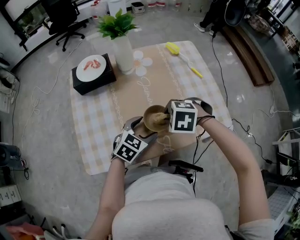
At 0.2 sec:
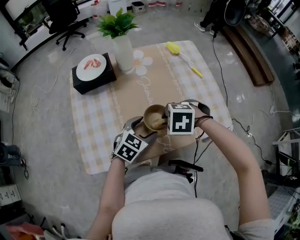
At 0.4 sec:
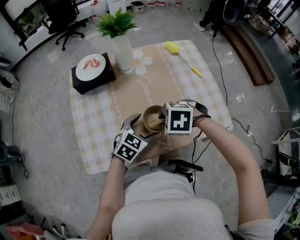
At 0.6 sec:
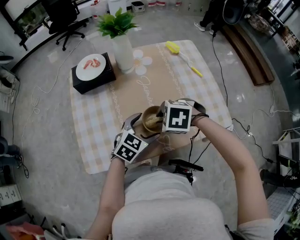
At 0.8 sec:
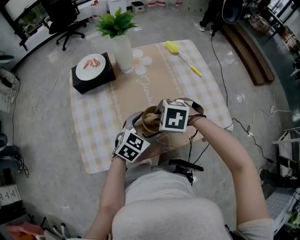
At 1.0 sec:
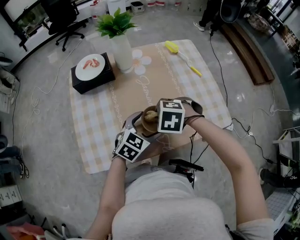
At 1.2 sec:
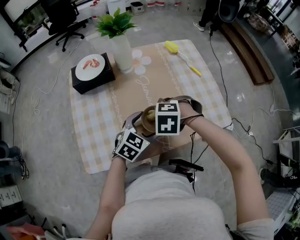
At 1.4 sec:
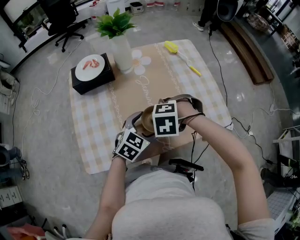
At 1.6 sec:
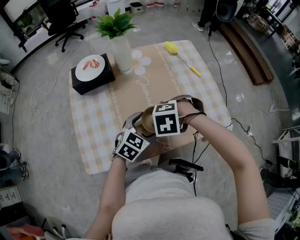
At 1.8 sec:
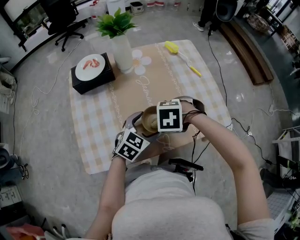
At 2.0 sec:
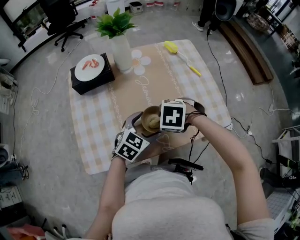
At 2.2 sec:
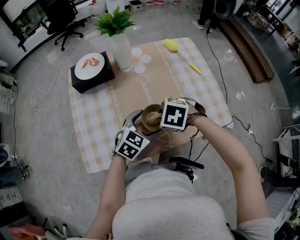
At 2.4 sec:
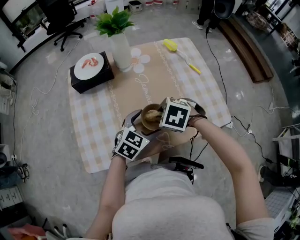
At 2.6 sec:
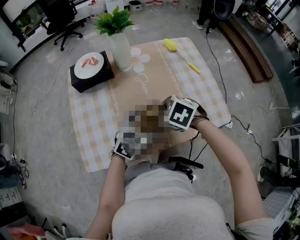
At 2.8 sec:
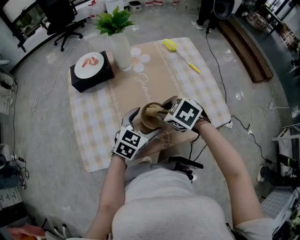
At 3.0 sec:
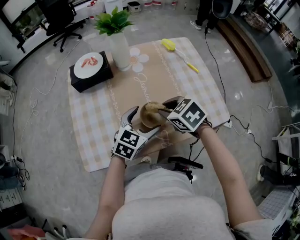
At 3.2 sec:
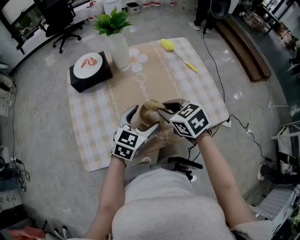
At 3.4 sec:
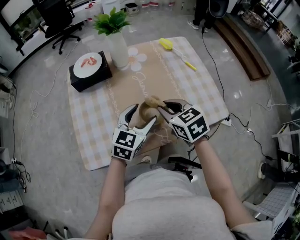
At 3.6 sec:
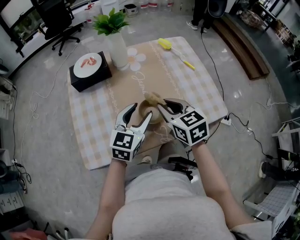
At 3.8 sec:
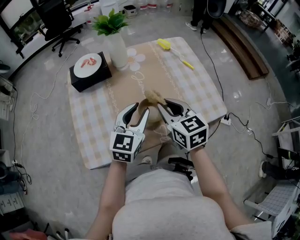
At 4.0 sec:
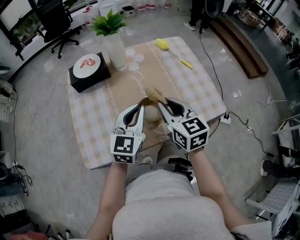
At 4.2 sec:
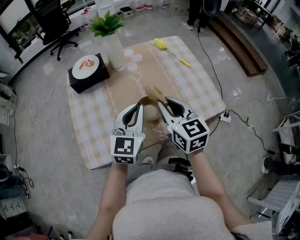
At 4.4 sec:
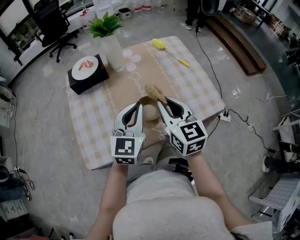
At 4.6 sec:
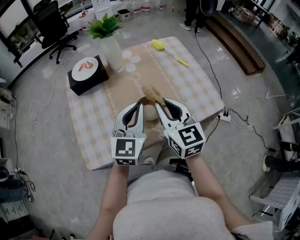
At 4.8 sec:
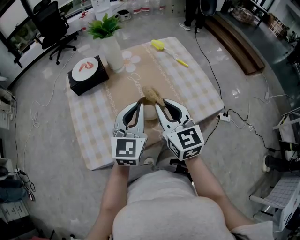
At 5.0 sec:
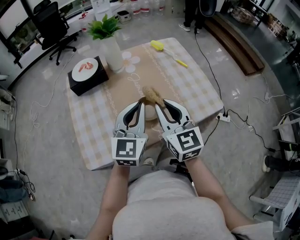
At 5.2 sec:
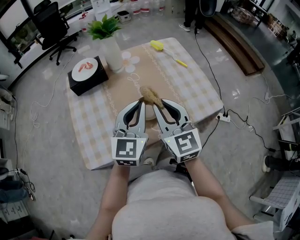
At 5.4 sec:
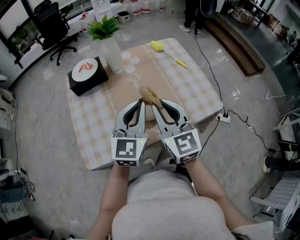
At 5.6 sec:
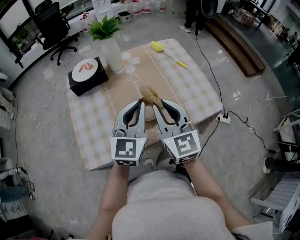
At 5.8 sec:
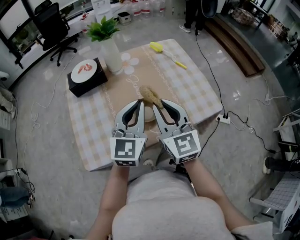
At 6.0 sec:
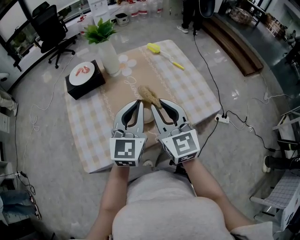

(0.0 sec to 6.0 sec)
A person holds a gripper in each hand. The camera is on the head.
0.0 sec - 1.6 sec: There are only small adjustments of the grippers.
1.6 sec - 3.0 sec: The right gripper tilts its fingers about 30 degrees upward.
3.0 sec - 4.4 sec: Both grippers move upward, roughly 10 cm. The left gripper turns by approximately 30 degrees, and closes its fingers. Meanwhile the right gripper tilts its fingers some 40 degrees upward.
4.4 sec - 6.0 sec: The grippers stay close to where they were, moving slightly.

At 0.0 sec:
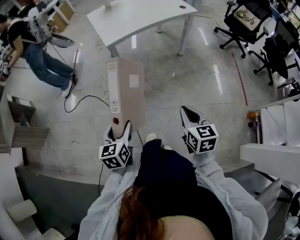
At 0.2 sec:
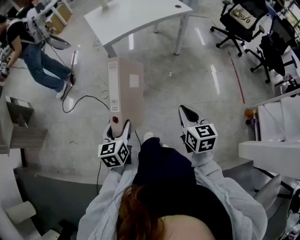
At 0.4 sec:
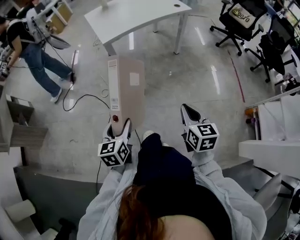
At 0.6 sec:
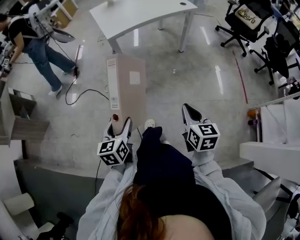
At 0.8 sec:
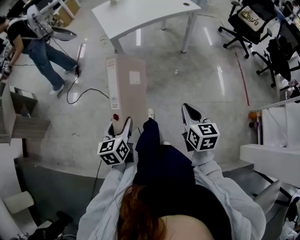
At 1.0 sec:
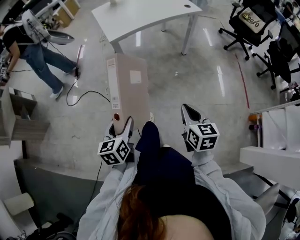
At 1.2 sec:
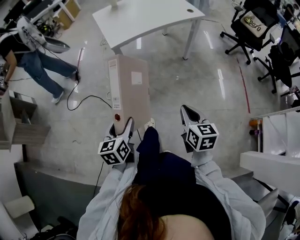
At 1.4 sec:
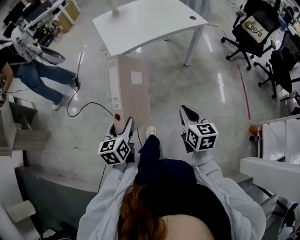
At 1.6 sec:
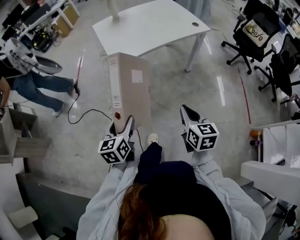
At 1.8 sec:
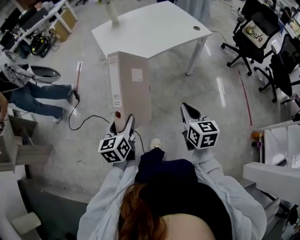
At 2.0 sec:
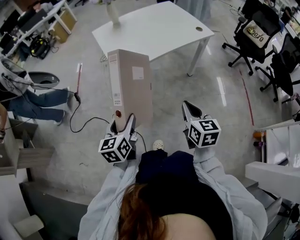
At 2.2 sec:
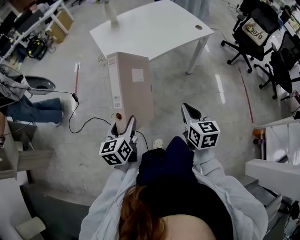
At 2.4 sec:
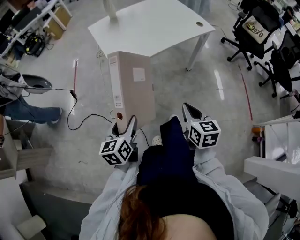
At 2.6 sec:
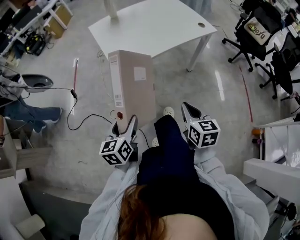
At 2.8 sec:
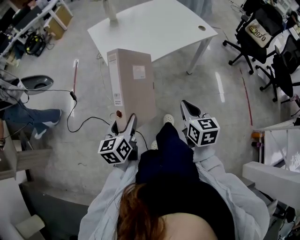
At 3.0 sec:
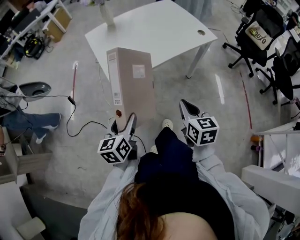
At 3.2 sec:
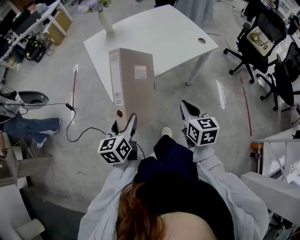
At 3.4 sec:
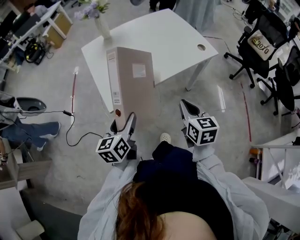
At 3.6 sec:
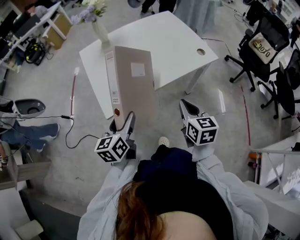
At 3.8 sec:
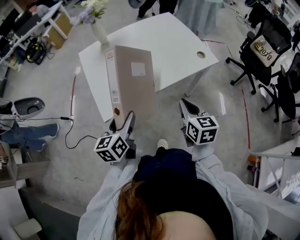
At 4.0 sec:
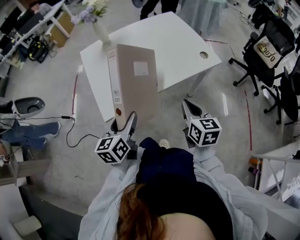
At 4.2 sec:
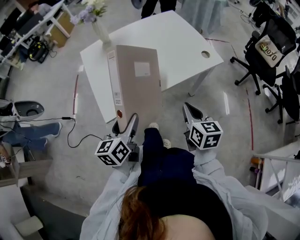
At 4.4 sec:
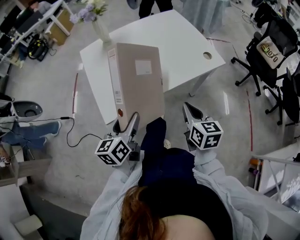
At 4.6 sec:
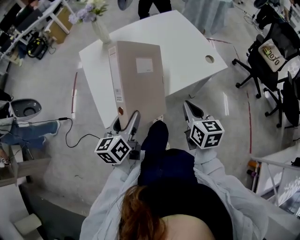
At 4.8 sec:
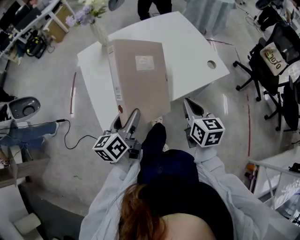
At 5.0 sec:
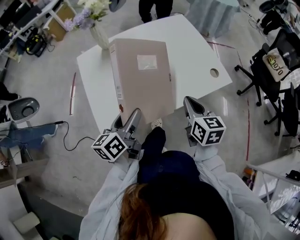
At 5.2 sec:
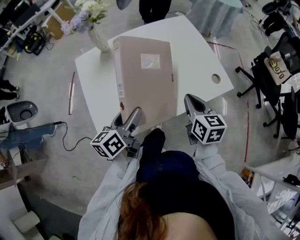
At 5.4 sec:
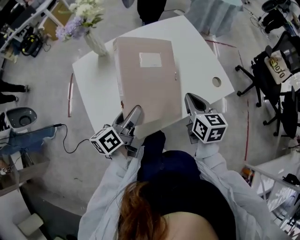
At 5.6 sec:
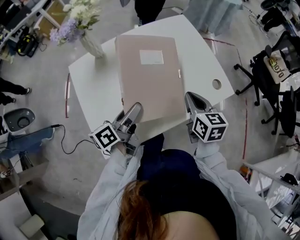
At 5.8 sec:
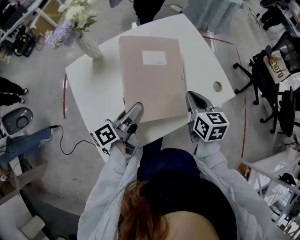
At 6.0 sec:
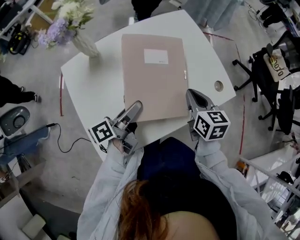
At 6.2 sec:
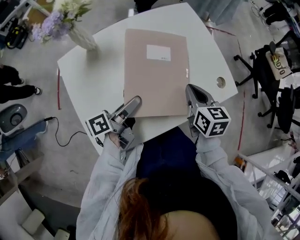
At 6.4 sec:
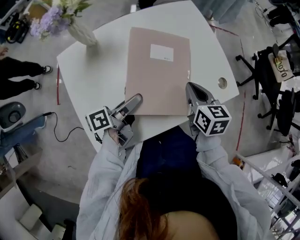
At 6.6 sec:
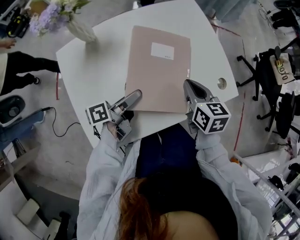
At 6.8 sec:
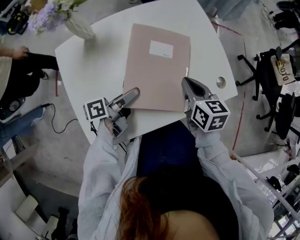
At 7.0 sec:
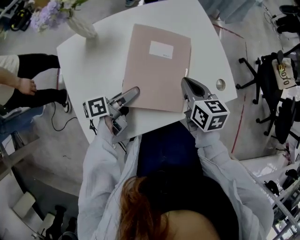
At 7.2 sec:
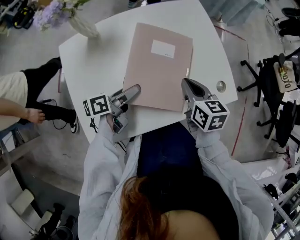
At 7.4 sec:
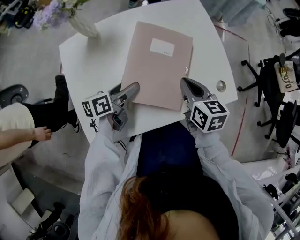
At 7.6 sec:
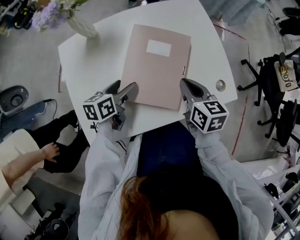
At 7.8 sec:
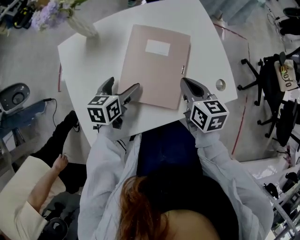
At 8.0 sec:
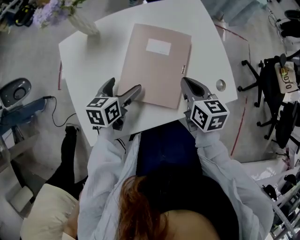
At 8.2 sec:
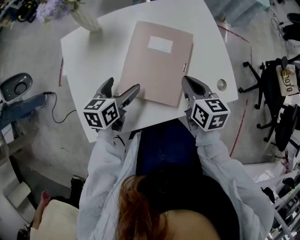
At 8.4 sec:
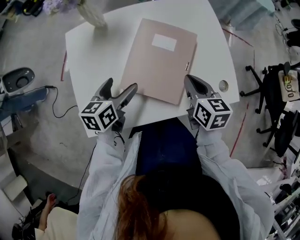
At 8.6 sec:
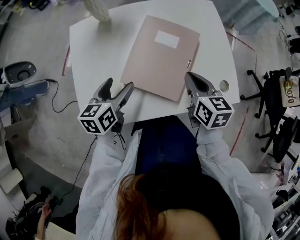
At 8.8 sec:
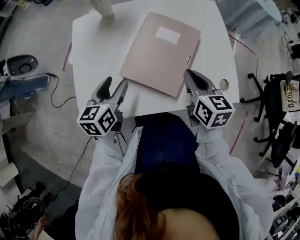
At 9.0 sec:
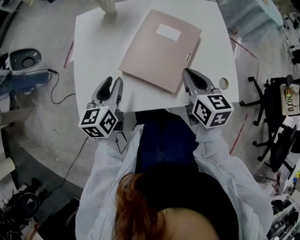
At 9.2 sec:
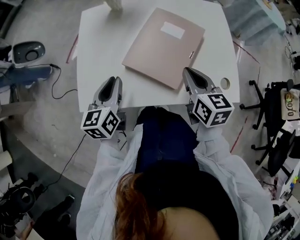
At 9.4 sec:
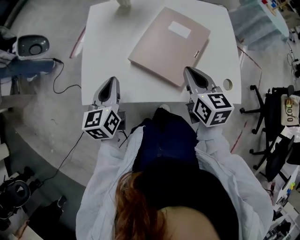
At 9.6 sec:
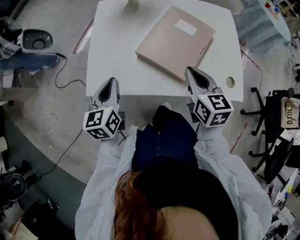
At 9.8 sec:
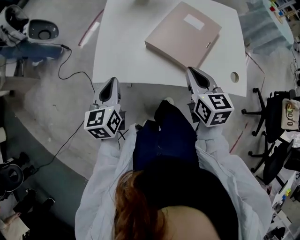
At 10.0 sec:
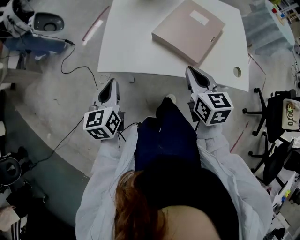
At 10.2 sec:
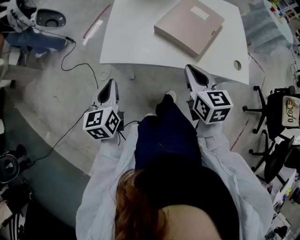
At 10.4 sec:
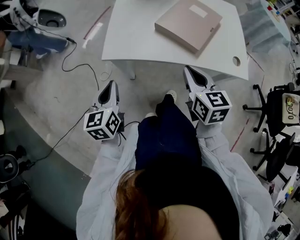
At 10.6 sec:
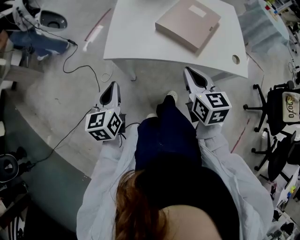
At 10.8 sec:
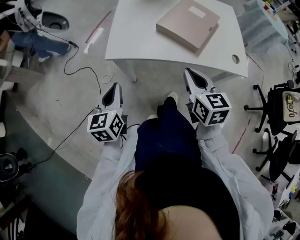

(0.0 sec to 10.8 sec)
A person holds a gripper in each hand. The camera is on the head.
0.0 sec - 1.6 sec: The grippers both shift forward by roughly 20 cm.
1.6 sec - 3.0 sec: Both grippers travel together forward, some 20 cm.
3.0 sec - 4.6 sec: The left gripper shifts about 25 cm forward and to the right; the right gripper moves forward, about 25 cm.
4.6 sec - 6.2 sec: The grippers both shift forward by approximately 25 cm. The left gripper rotates around the line of its fingers by approximately 40 degrees, counterclockwise from behind.
6.2 sec - 7.8 sec: The left gripper shifts by approximately 5 cm, rolls clockwise, seen from behind, by approximately 40 degrees, and opens up.
7.8 sec - 9.2 sec: The right gripper shifts approximately 5 cm backward. Meanwhile the left gripper moves backward and upward, about 15 cm, turns by about 40 degrees, and closes its fingers.
9.2 sec - 10.8 sec: Both grippers travel together backward and to the left, some 30 cm.

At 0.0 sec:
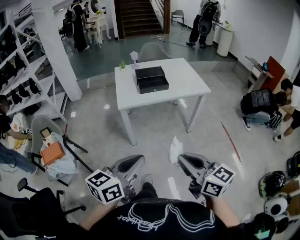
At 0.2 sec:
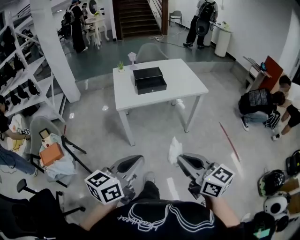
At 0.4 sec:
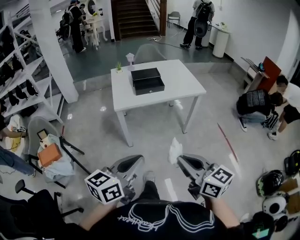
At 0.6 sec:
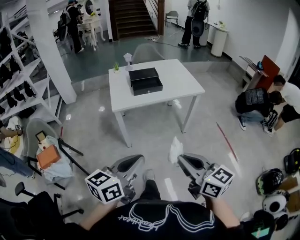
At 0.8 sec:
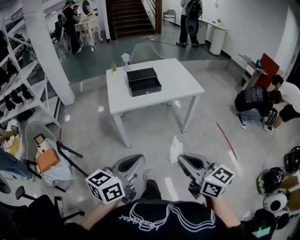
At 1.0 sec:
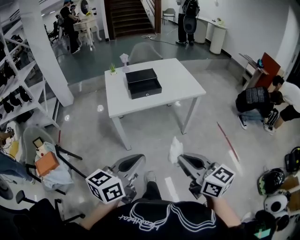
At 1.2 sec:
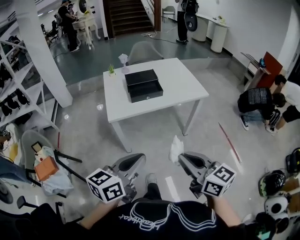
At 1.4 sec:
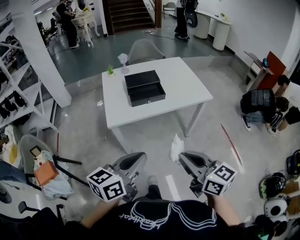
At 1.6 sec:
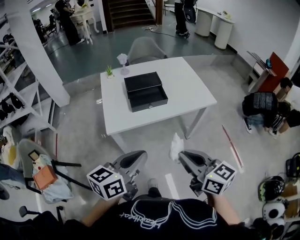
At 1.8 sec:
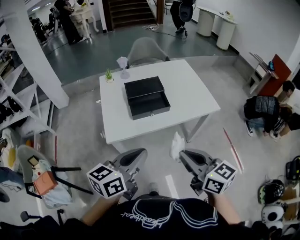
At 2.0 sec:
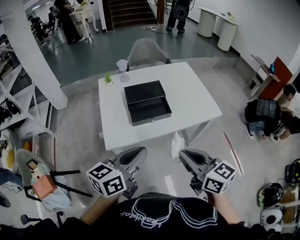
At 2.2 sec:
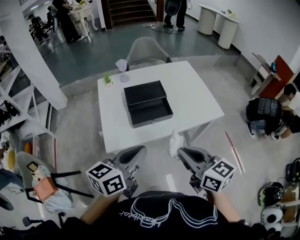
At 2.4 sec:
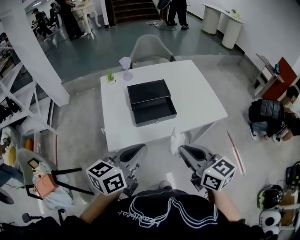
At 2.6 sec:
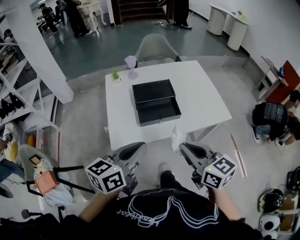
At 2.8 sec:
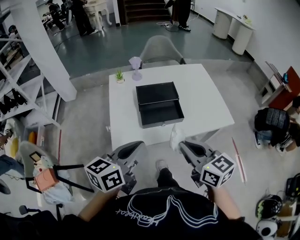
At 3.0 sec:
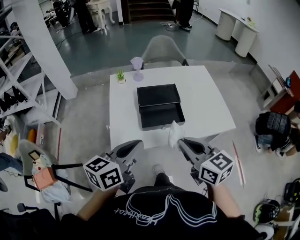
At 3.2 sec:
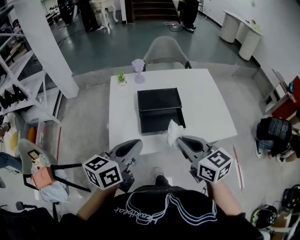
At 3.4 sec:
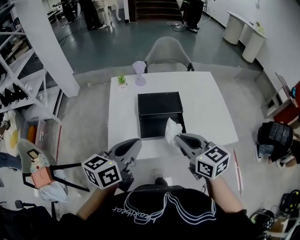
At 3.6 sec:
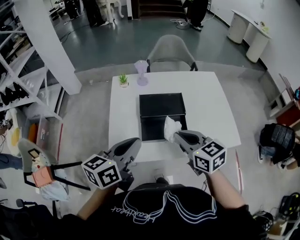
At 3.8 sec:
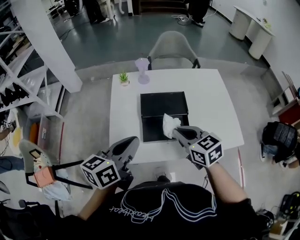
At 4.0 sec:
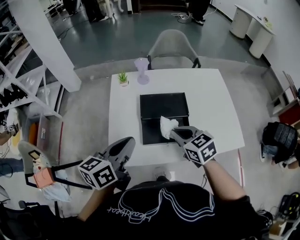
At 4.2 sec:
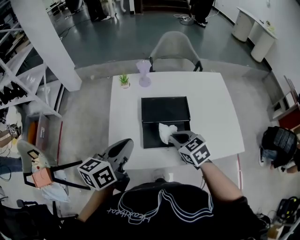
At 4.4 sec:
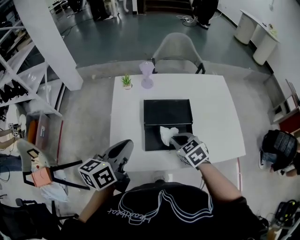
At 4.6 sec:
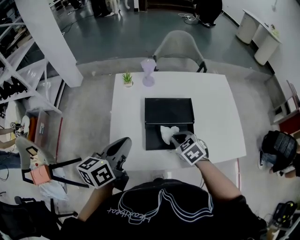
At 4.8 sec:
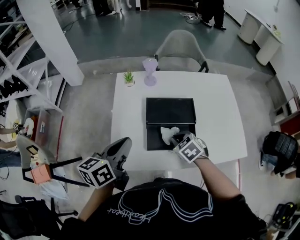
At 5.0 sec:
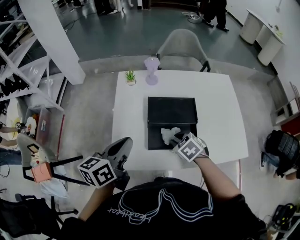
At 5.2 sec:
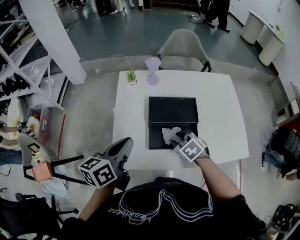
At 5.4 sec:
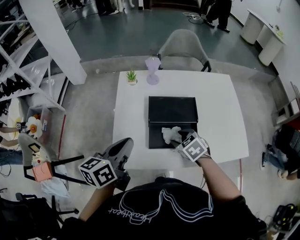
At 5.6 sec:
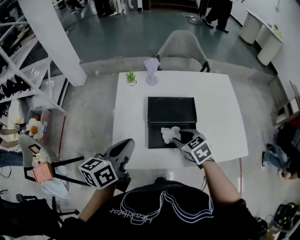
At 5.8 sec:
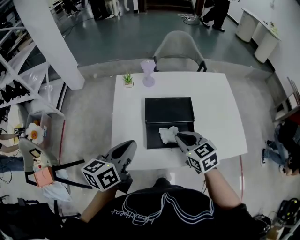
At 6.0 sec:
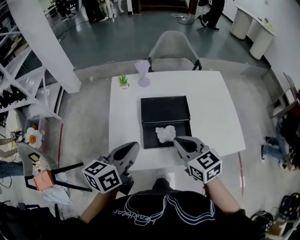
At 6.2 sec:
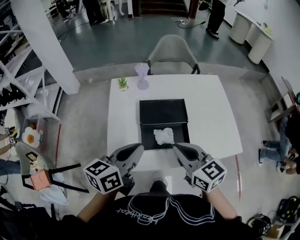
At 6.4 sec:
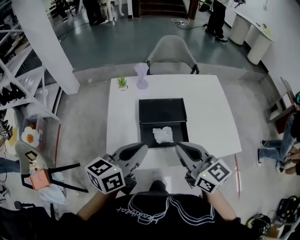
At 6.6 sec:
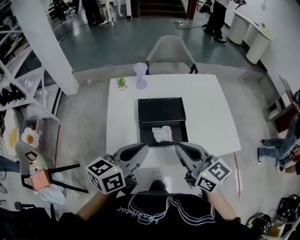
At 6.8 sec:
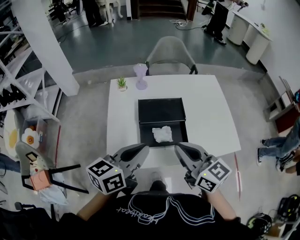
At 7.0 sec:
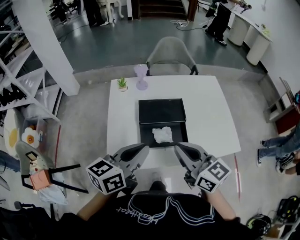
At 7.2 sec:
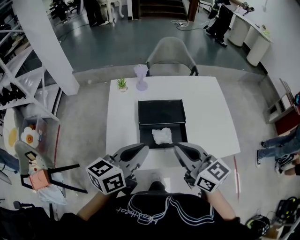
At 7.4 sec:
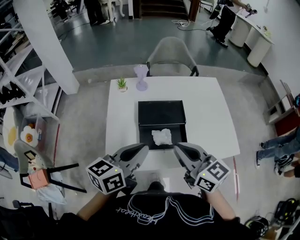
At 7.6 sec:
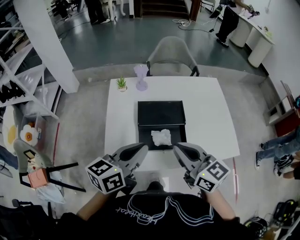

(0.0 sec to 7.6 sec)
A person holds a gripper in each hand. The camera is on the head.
0.0 sec - 1.6 sec: Both grippers travel together forward, some 25 cm.
1.6 sec - 3.0 sec: Both grippers travel together forward, about 20 cm.
3.0 sec - 4.6 sec: The right gripper shifts approximately 30 cm forward and downward, and tilts its fingers about 40 degrees downward, while the left gripper heads forward, covering roughly 15 cm.
4.6 sec - 6.0 sec: The right gripper goes roughly 10 cm upward, rotates about 30 degrees, and opens, then closes once more.
6.0 sec - 7.6 sec: The right gripper is displaced upward by approximately 5 cm, while the left gripper changes place by approximately 5 cm.
